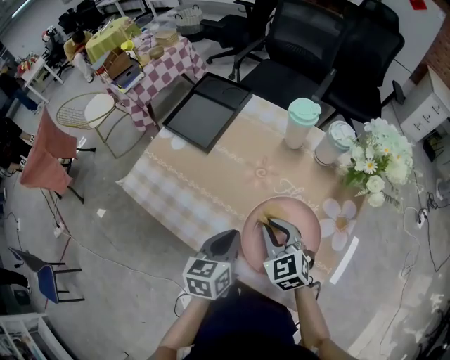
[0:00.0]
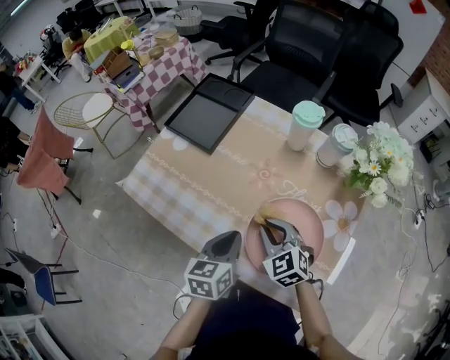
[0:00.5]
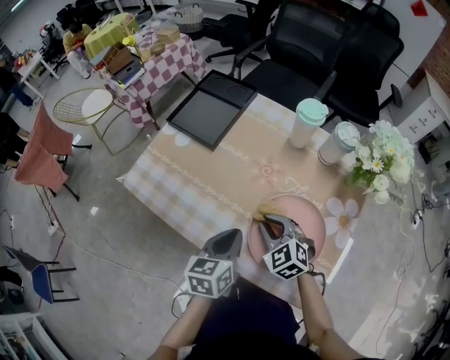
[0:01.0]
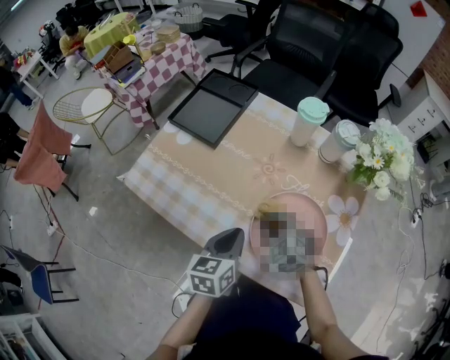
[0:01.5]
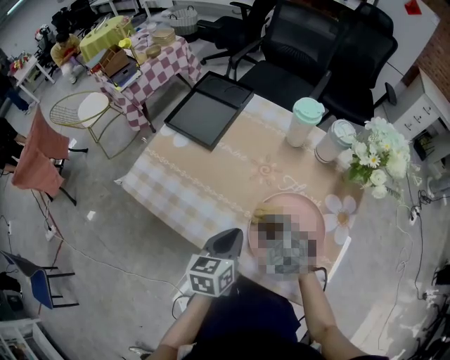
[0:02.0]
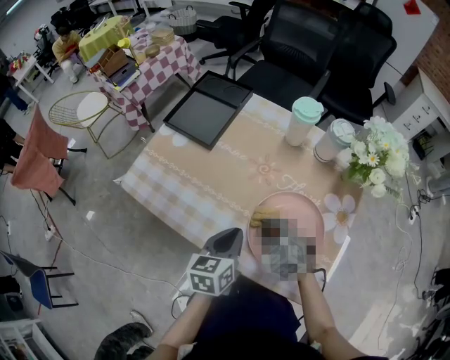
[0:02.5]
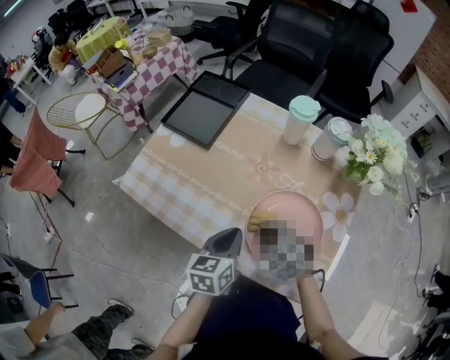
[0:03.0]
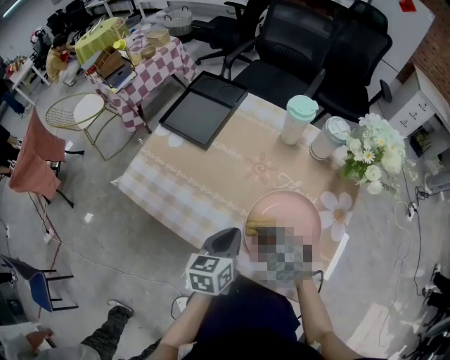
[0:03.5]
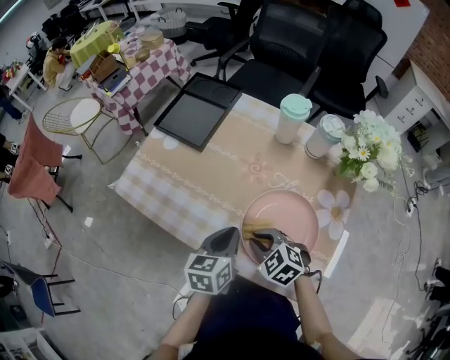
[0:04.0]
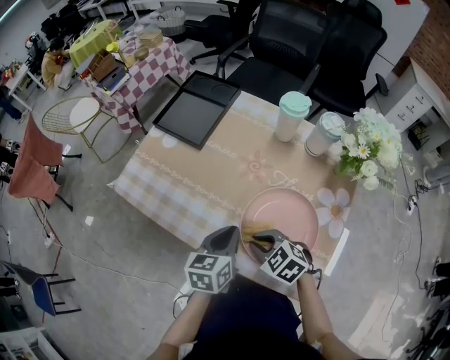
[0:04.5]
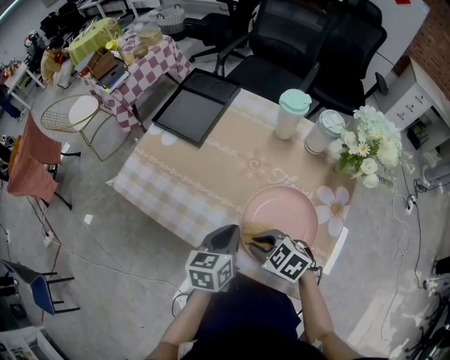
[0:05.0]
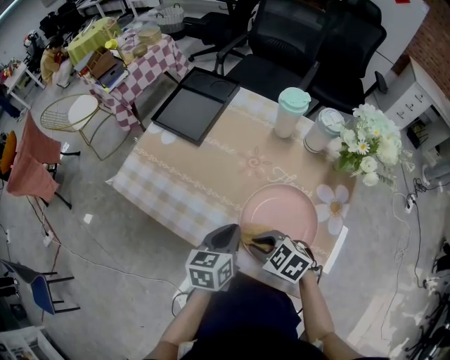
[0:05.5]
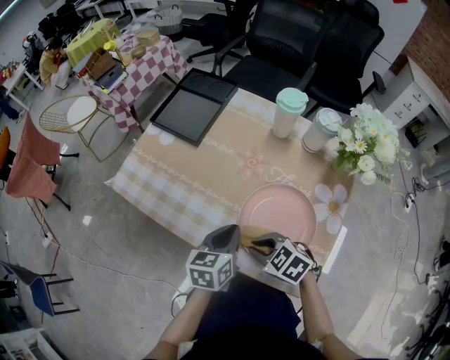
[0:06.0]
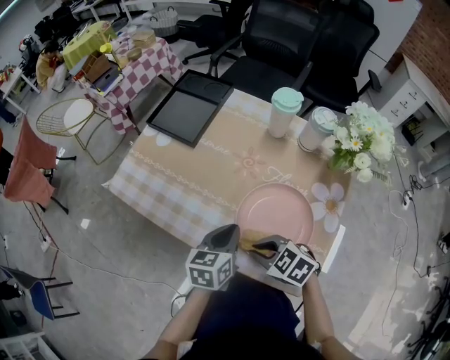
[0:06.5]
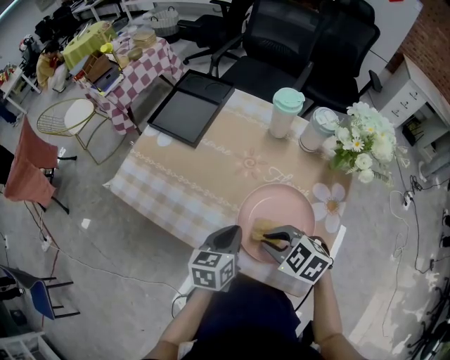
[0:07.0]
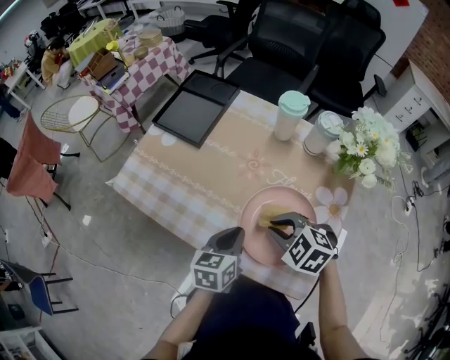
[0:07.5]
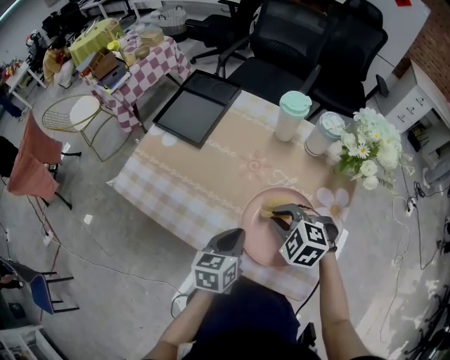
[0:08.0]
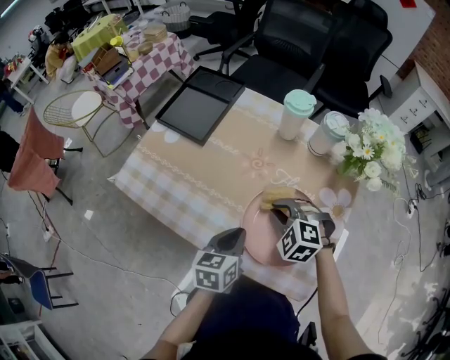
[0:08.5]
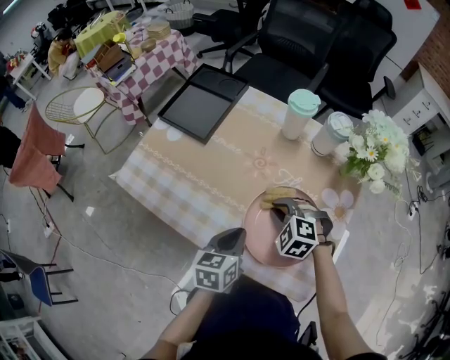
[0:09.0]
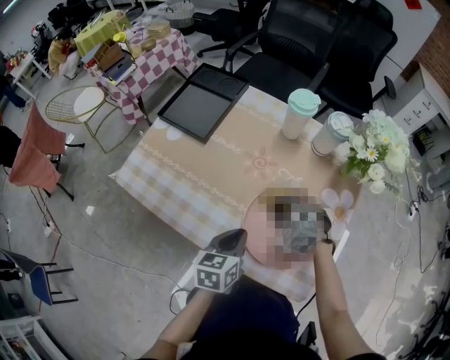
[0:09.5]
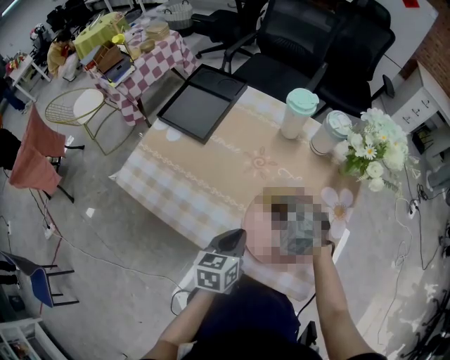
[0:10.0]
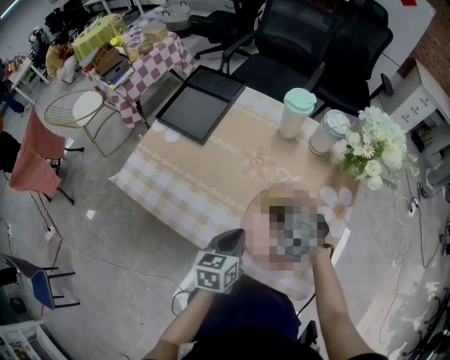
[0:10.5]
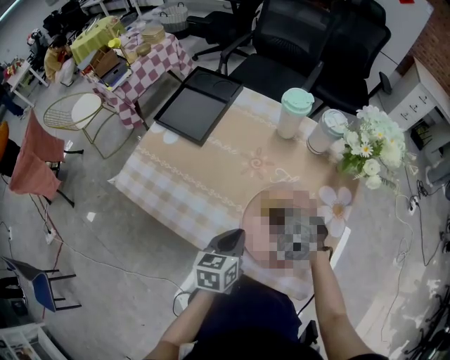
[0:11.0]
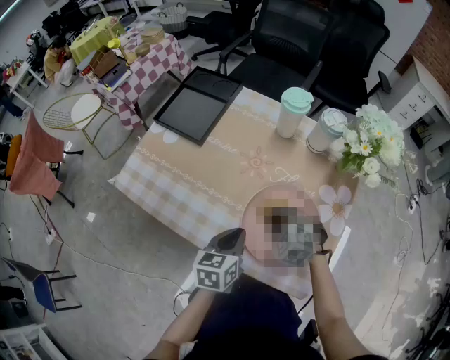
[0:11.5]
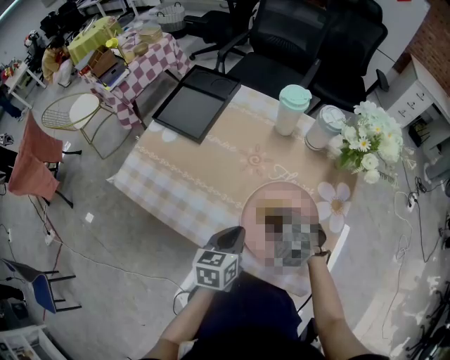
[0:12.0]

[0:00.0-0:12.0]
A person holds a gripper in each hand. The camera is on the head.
0:00.0 to 0:02.0: The right gripper is displaced downward by about 5 cm.
0:02.0 to 0:04.0: The right gripper moves backward, roughly 5 cm.
0:04.0 to 0:06.0: The grippers move only a little.
0:06.0 to 0:08.0: The right gripper travels forward and to the right by some 10 cm, and turns by approximately 30 degrees.
0:08.0 to 0:10.0: The right gripper shifts roughly 5 cm downward.
0:10.0 to 0:12.0: The grippers stay close to where they were, moving slightly.

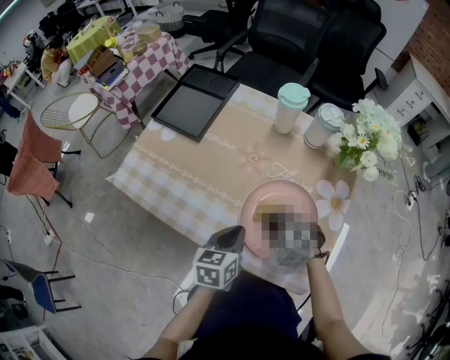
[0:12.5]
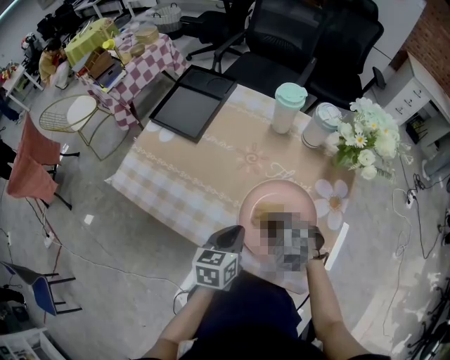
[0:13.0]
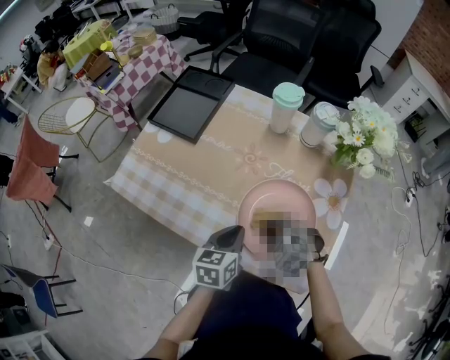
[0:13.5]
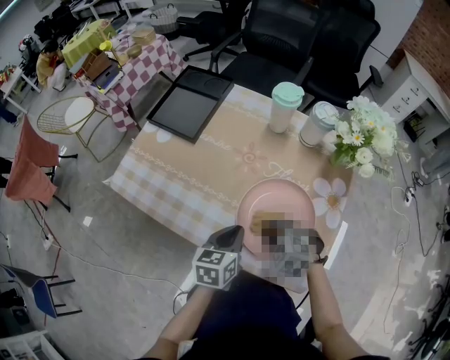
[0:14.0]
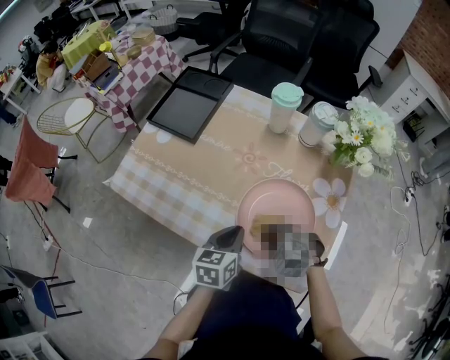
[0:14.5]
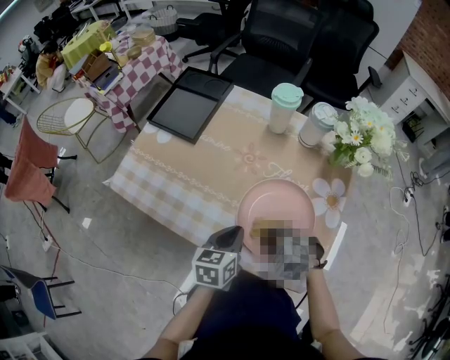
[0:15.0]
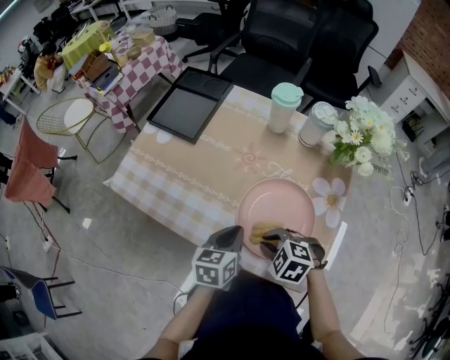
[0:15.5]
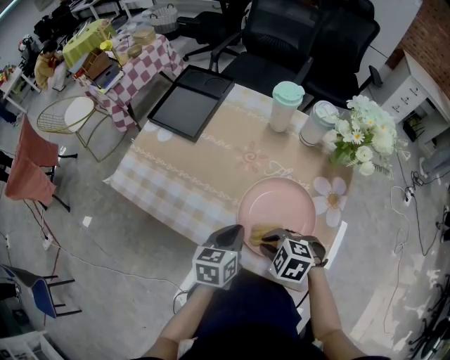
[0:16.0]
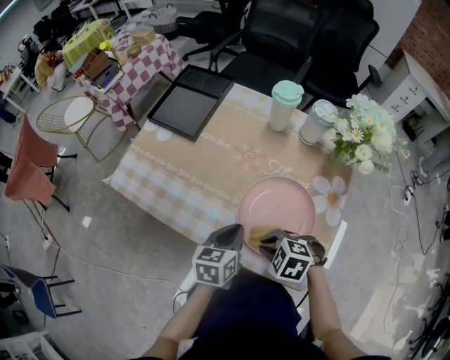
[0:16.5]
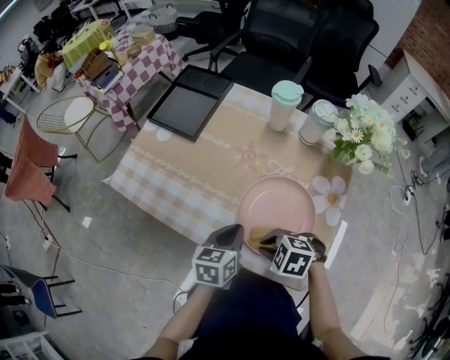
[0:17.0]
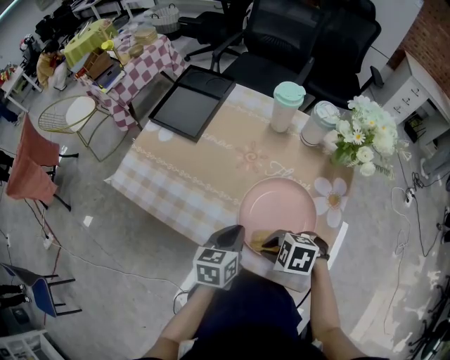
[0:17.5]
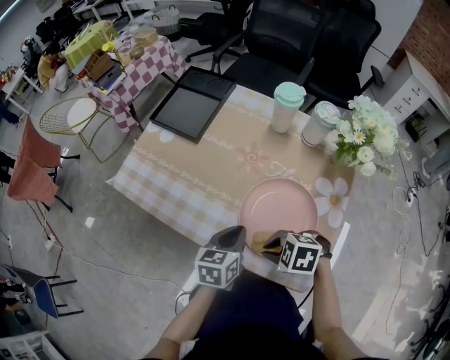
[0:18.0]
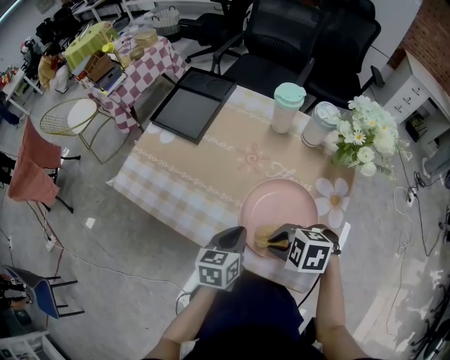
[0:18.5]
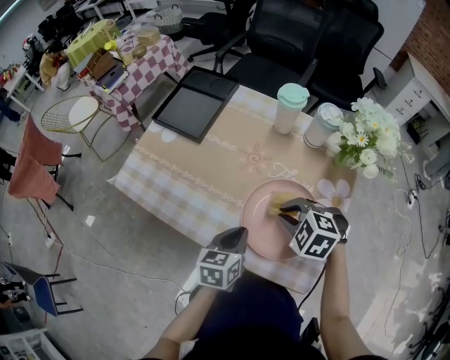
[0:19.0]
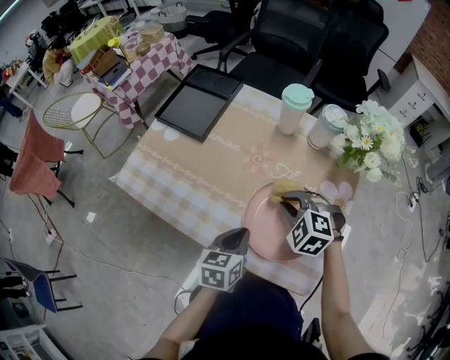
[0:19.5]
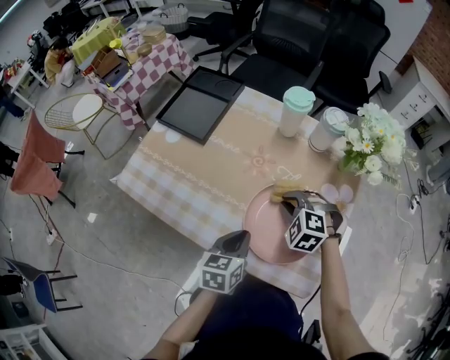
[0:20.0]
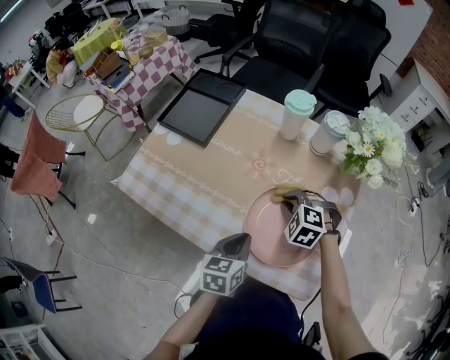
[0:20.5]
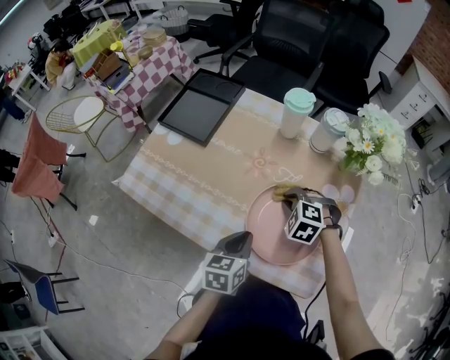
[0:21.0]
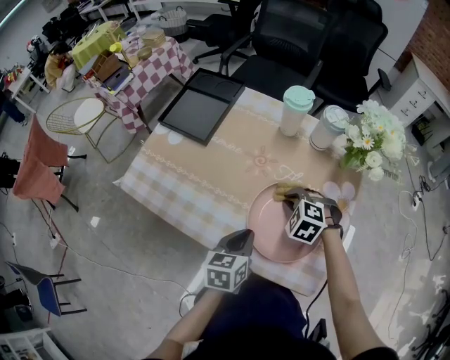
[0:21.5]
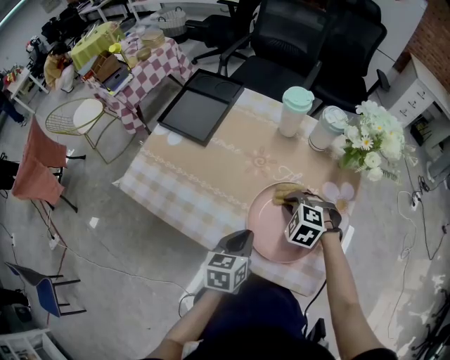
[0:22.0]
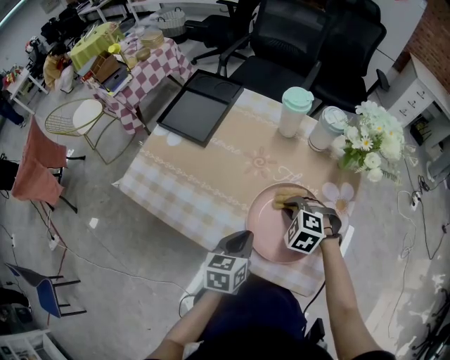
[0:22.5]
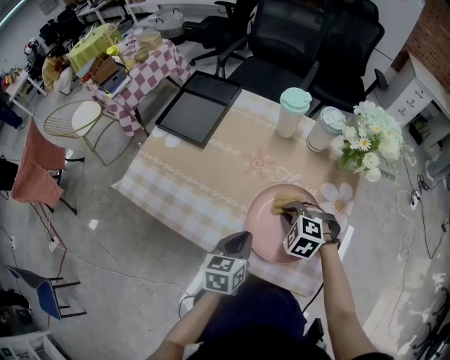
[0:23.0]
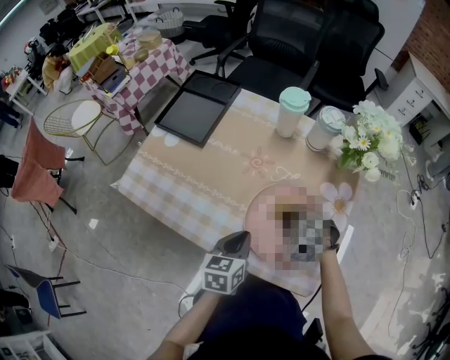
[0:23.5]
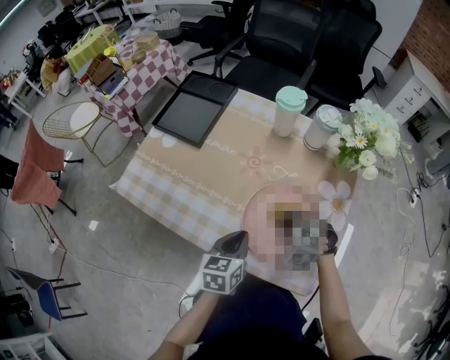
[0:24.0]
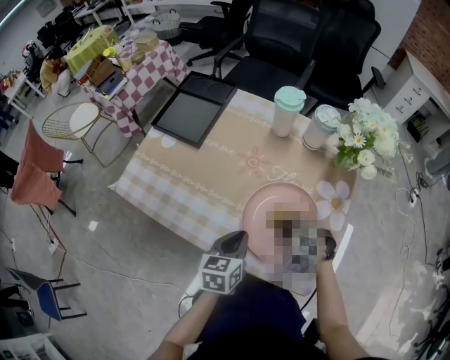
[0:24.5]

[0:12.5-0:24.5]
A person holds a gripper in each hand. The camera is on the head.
0:12.5 to 0:14.5: There are only small adjustments of the grippers.
0:14.5 to 0:16.5: The grippers make only small movements.
0:16.5 to 0:18.5: The grippers make only small movements.
0:18.5 to 0:20.5: The right gripper changes place by some 15 cm, and rotates about 30 degrees.
0:20.5 to 0:22.5: The grippers move only a little.
0:22.5 to 0:24.5: The right gripper moves backward, about 5 cm.

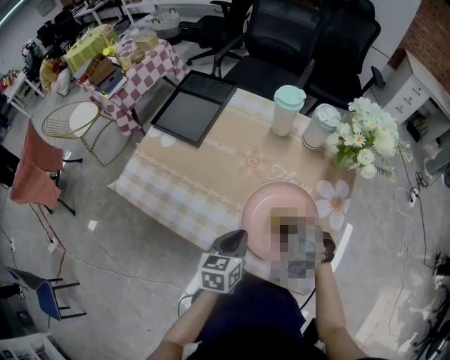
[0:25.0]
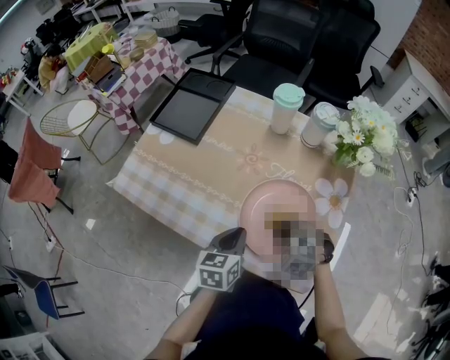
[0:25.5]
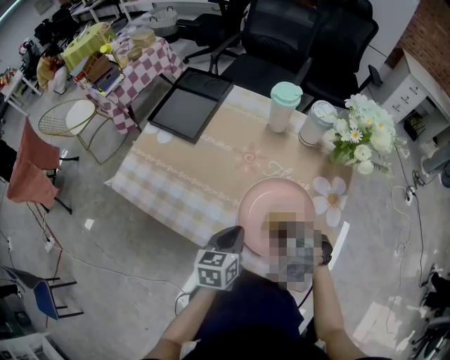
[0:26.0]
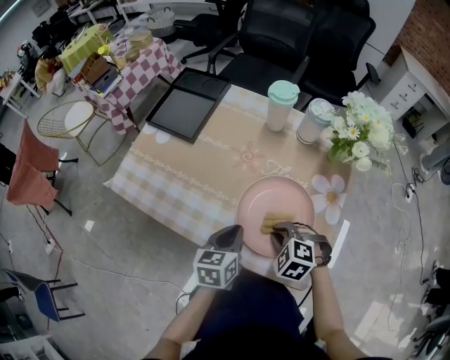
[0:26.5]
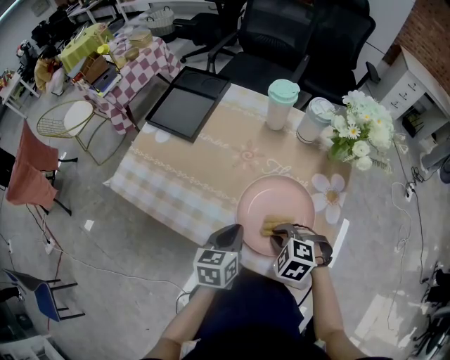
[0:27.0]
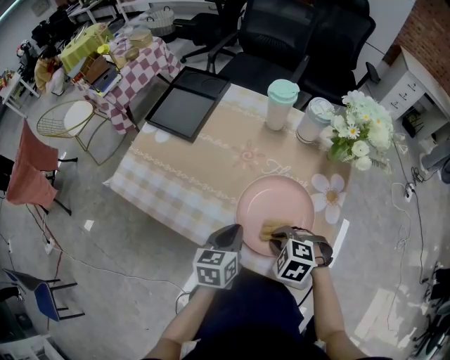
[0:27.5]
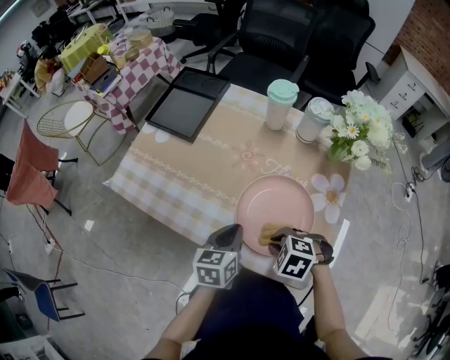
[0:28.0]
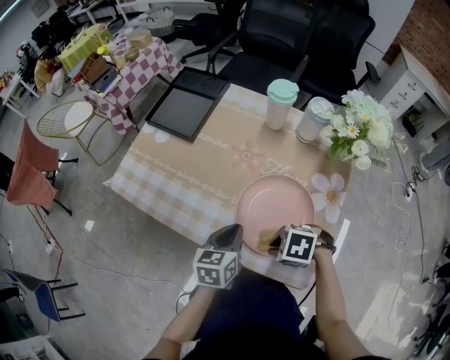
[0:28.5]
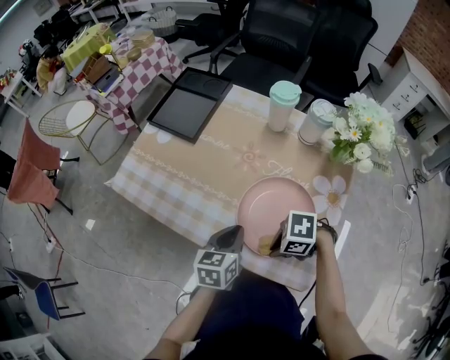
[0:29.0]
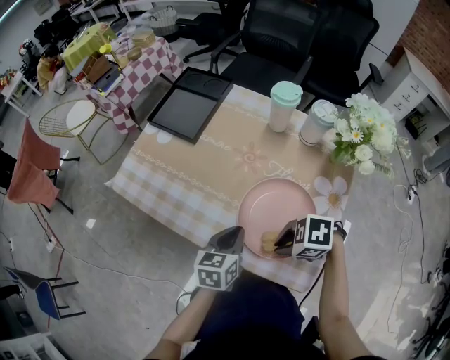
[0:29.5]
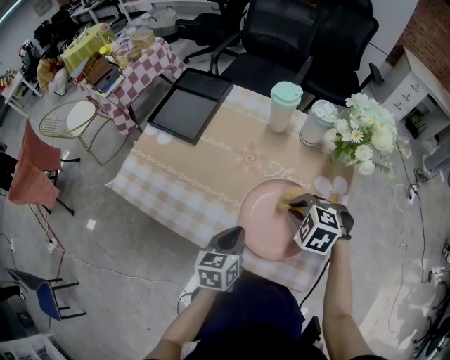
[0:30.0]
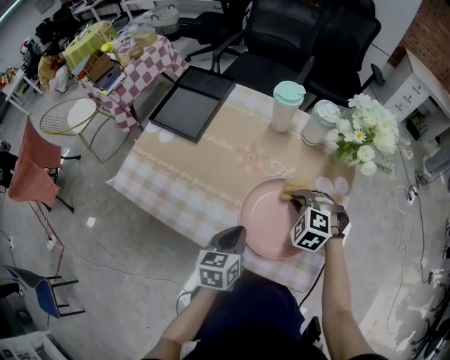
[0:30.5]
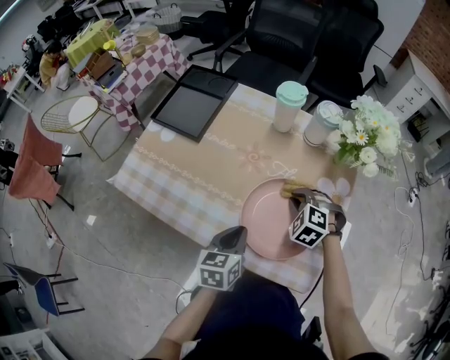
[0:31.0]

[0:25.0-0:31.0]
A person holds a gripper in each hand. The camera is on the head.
0:25.0 to 0:27.0: The grippers make only small movements.
0:27.0 to 0:29.0: The right gripper shifts by approximately 5 cm, and turns by about 50 degrees.
0:29.0 to 0:31.0: The right gripper shifts by some 20 cm, and changes its angle by approximately 60 degrees.
